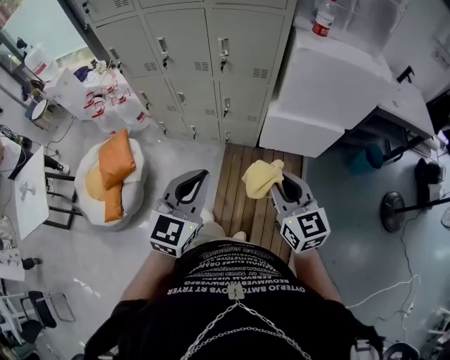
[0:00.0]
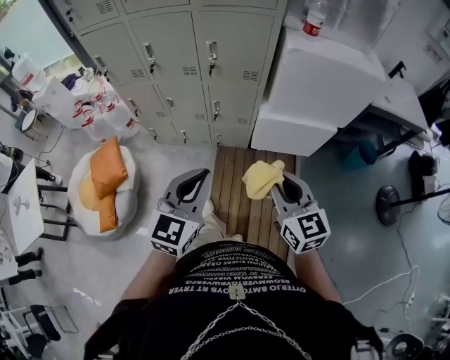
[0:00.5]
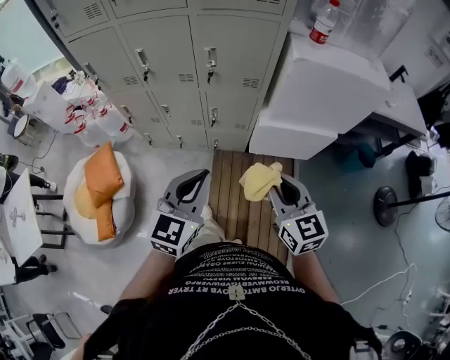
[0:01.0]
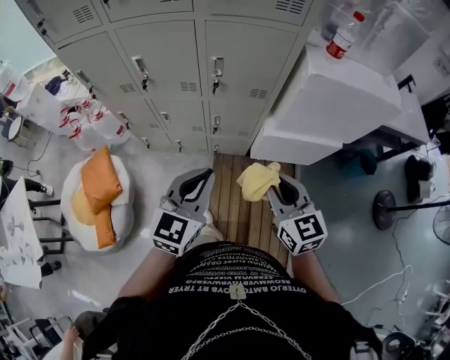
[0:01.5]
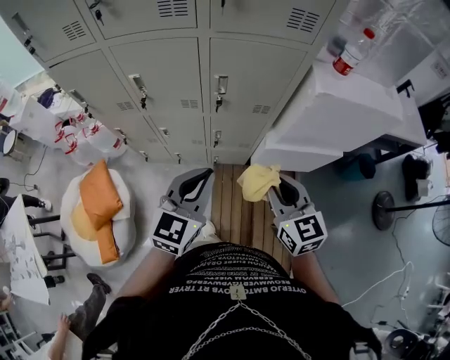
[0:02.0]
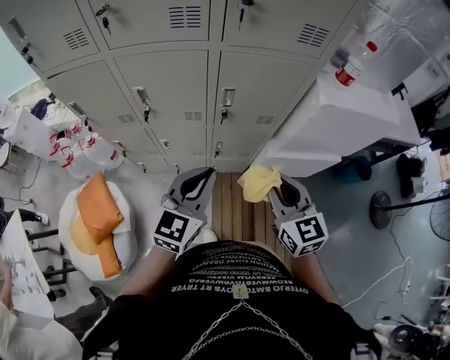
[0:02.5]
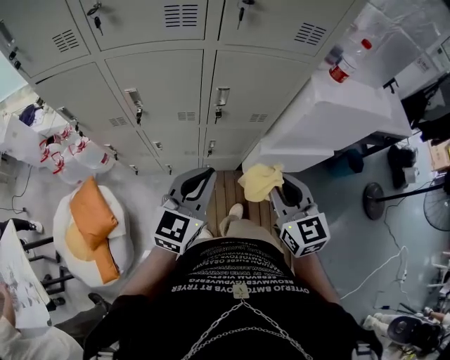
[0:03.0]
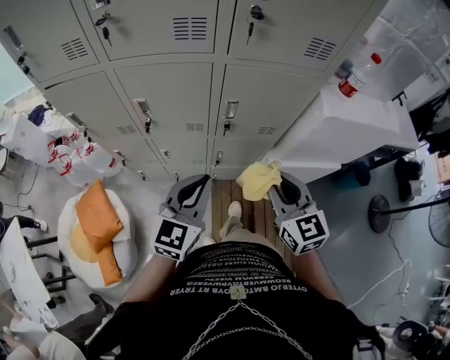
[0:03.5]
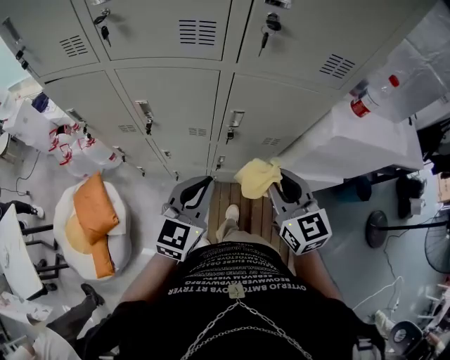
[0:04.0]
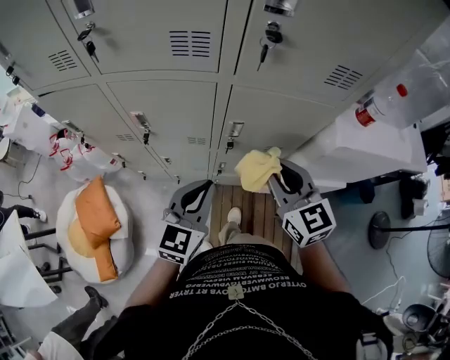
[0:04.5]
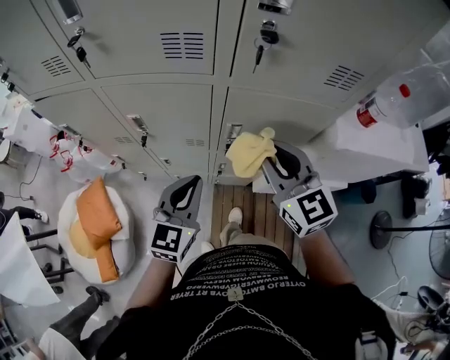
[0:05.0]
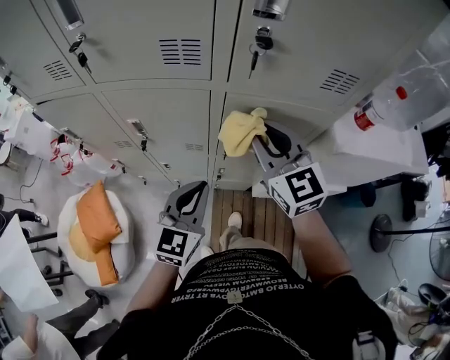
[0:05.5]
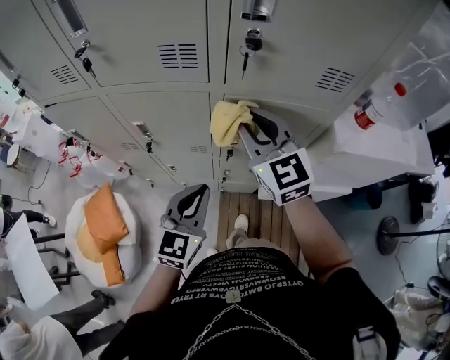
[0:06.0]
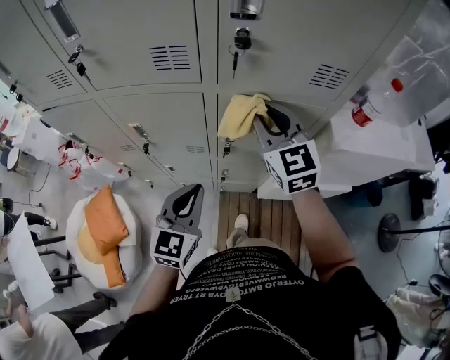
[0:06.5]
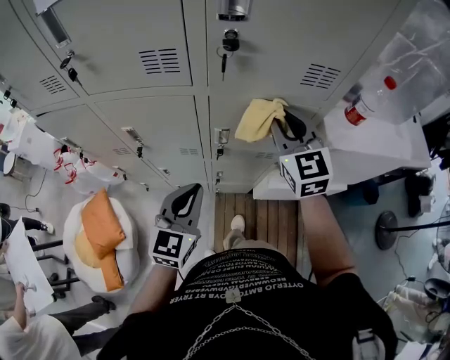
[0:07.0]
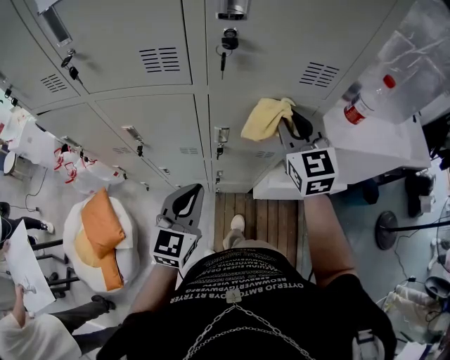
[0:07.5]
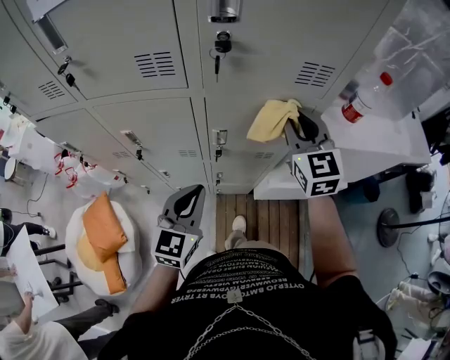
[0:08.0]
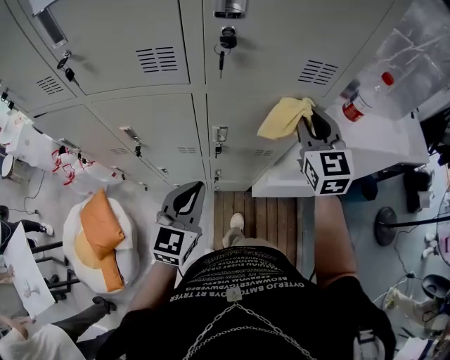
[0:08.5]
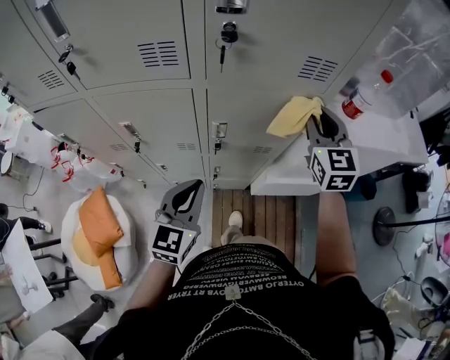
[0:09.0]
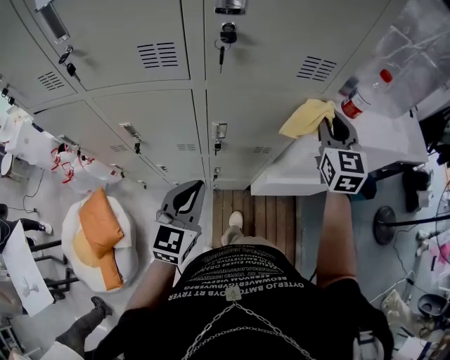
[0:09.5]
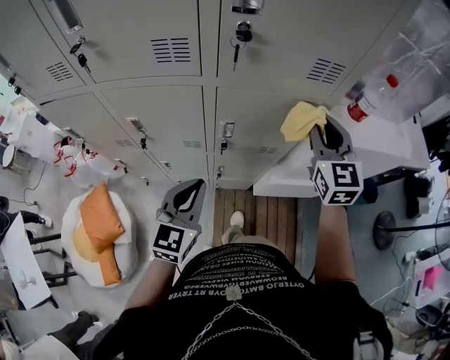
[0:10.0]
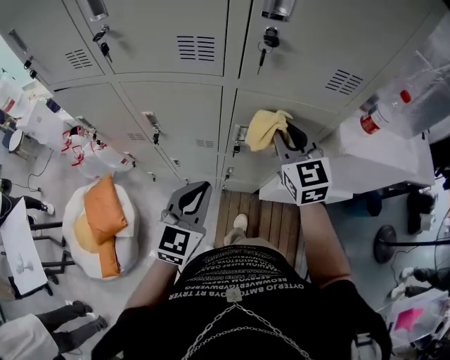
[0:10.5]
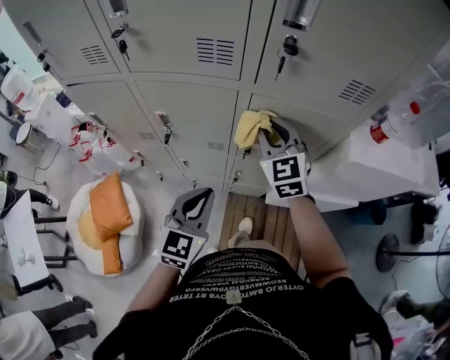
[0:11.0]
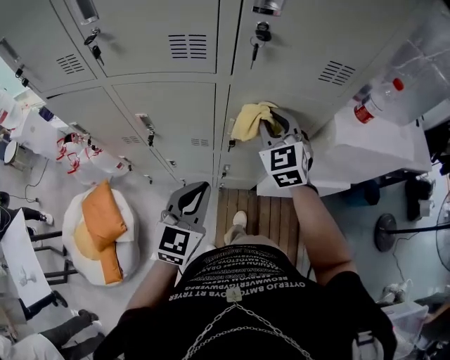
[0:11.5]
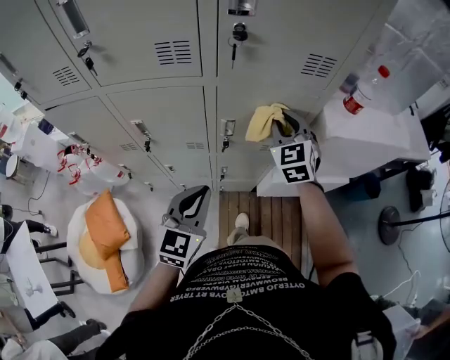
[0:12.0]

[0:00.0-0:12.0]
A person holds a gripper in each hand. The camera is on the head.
0:00.0 to 0:02.0: The two grippers go roughly 25 cm forward.
0:02.0 to 0:04.0: The two grippers go about 15 cm forward and to the left.
0:04.0 to 0:06.0: The right gripper shifts about 20 cm forward and upward.
0:06.0 to 0:08.0: The right gripper shifts roughly 15 cm to the right.
0:10.0 to 0:12.0: The right gripper travels downward and to the left by some 10 cm.

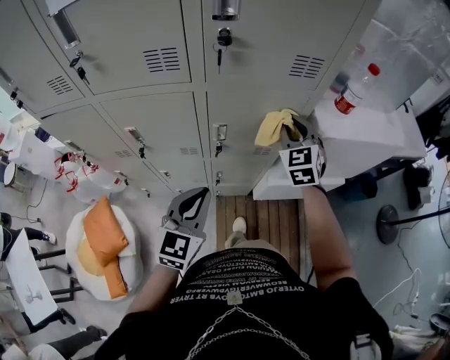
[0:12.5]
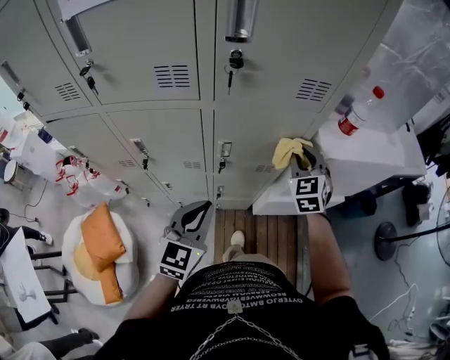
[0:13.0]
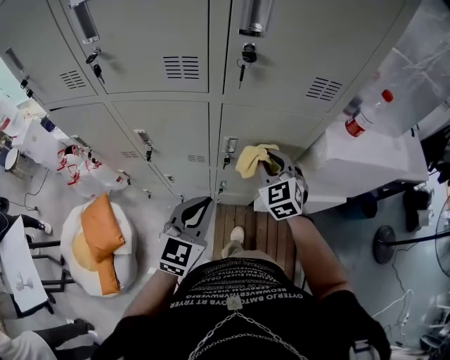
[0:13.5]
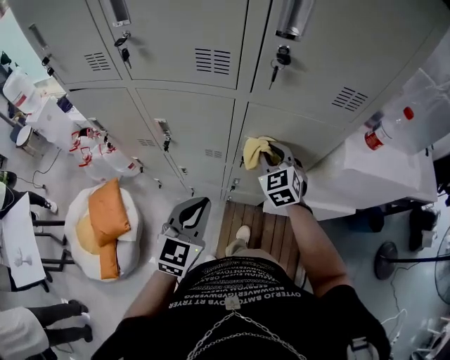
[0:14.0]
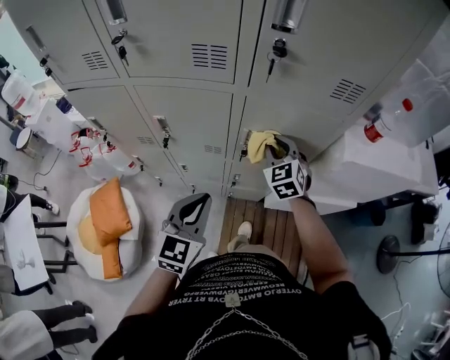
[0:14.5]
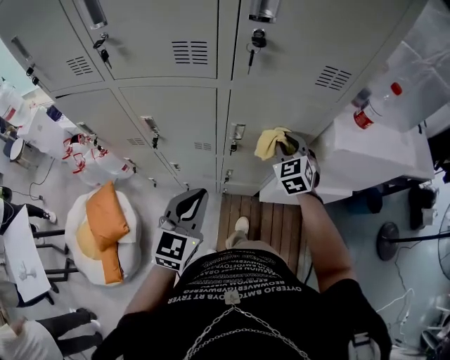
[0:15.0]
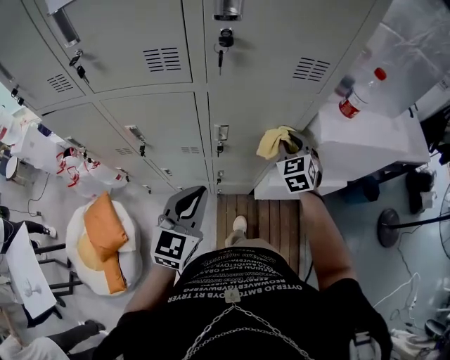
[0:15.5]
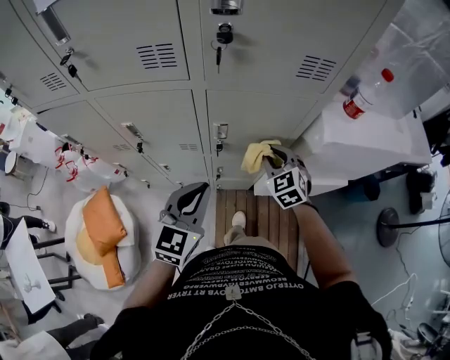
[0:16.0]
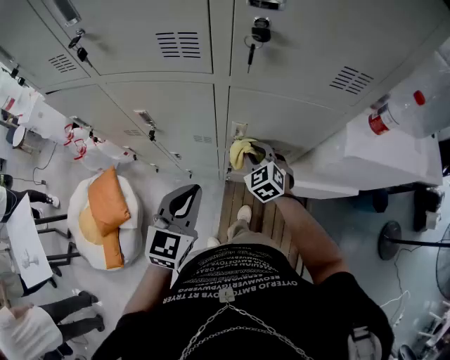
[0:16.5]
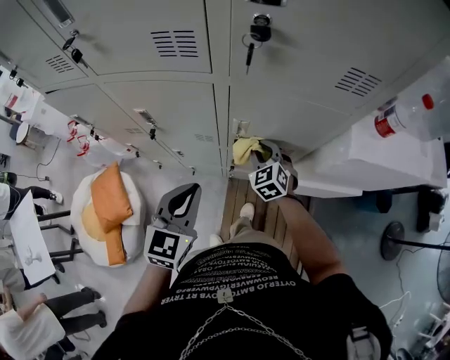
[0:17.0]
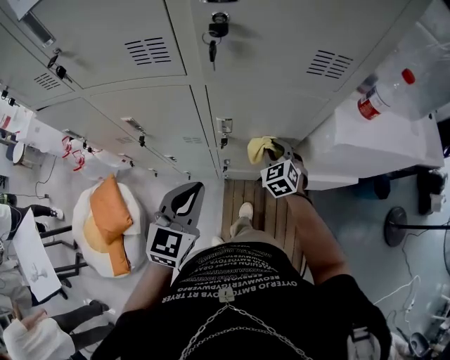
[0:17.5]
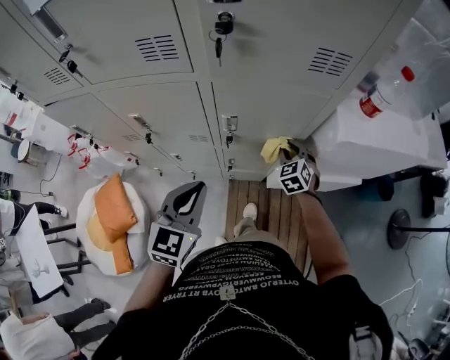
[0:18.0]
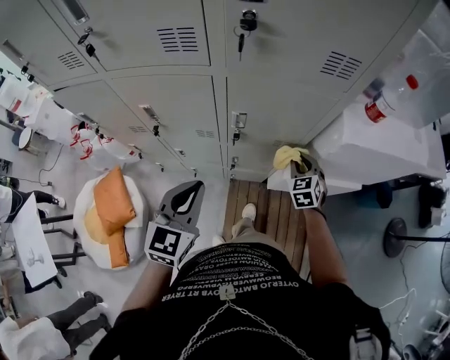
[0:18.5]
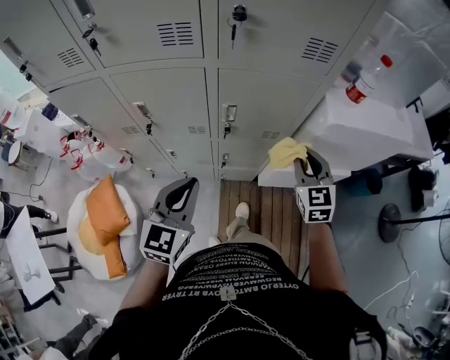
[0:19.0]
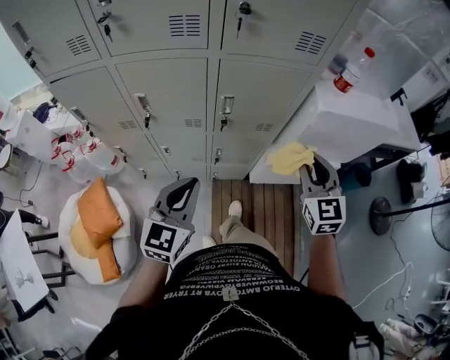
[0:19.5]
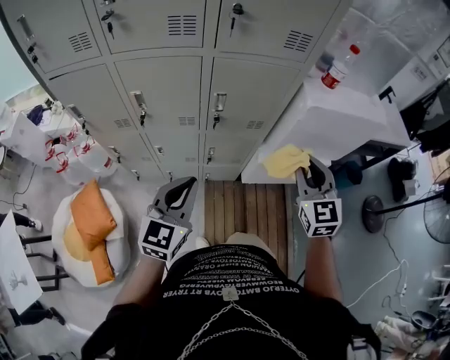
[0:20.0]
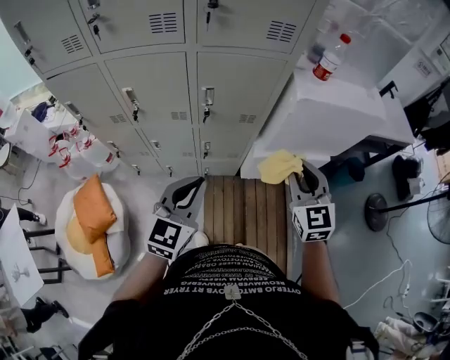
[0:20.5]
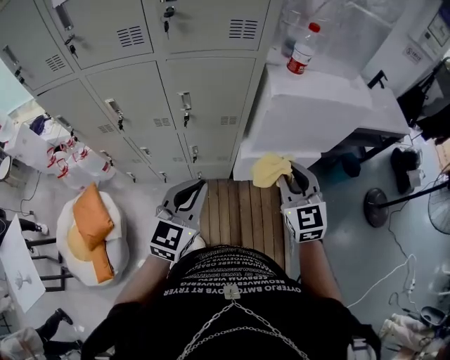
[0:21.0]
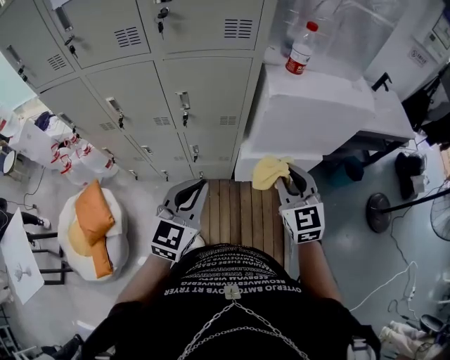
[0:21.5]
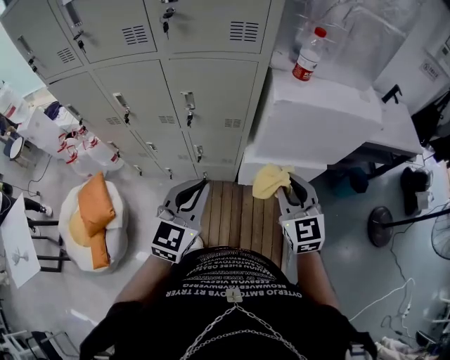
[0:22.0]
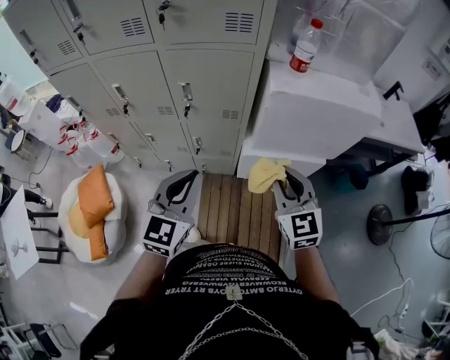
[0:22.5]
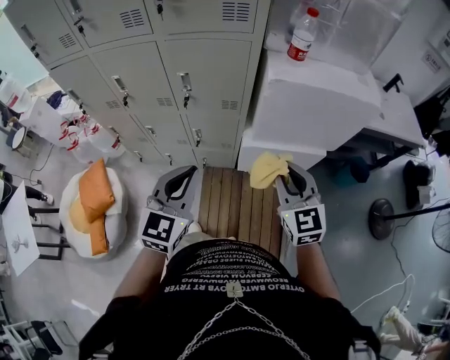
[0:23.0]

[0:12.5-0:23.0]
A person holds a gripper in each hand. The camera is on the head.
0:12.5 to 0:14.5: The right gripper goes approximately 15 cm to the left and downward; the left gripper goes roughly 5 cm to the left.
0:14.5 to 0:16.5: The right gripper is displaced downward by roughly 10 cm, and travels to the right and back again, approximately 15 cm each way.
0:16.5 to 0:19.0: The right gripper goes approximately 25 cm to the right, upward and backward, and turns by about 30 degrees. Meanwhile the left gripper moves backward, about 5 cm.
0:19.0 to 0:21.0: The right gripper shifts some 20 cm backward and to the right. Meanwhile the left gripper shifts about 20 cm to the right and backward.
0:21.0 to 0:23.0: The right gripper changes place by roughly 5 cm. Meanwhile the left gripper ends up roughly 5 cm from where it was.

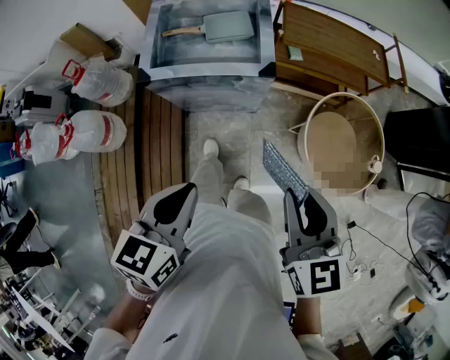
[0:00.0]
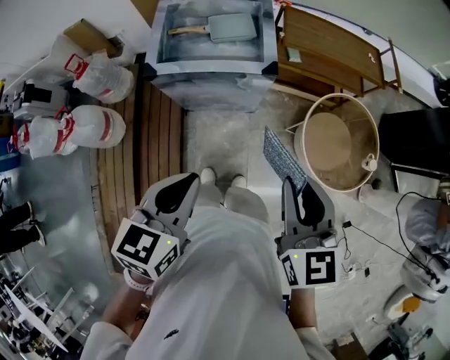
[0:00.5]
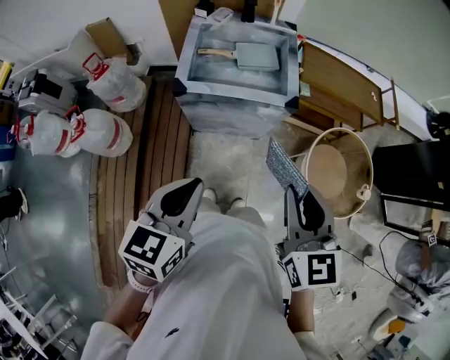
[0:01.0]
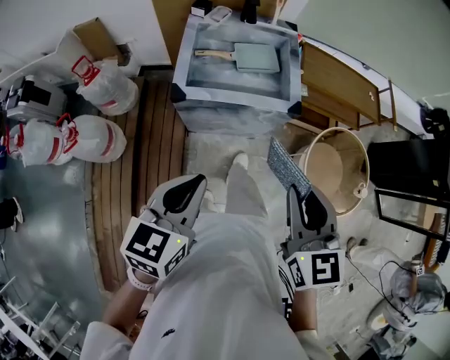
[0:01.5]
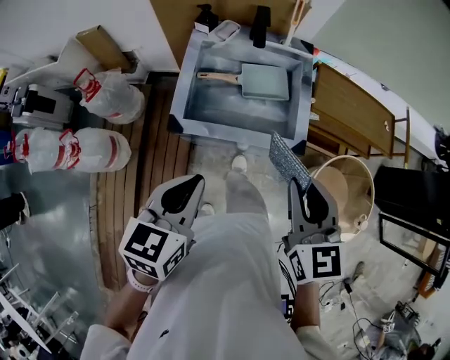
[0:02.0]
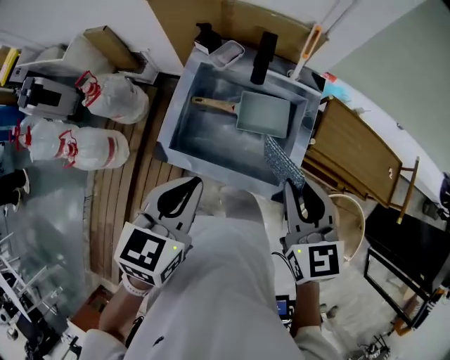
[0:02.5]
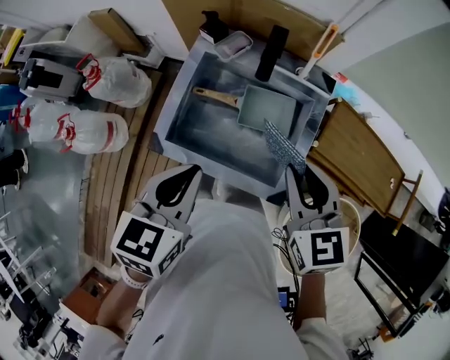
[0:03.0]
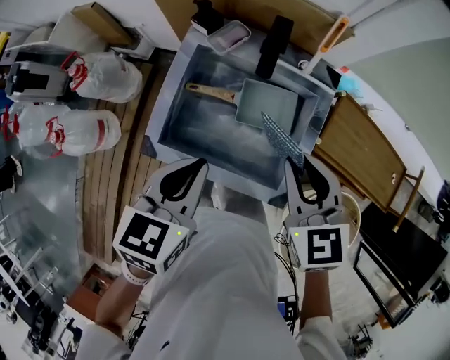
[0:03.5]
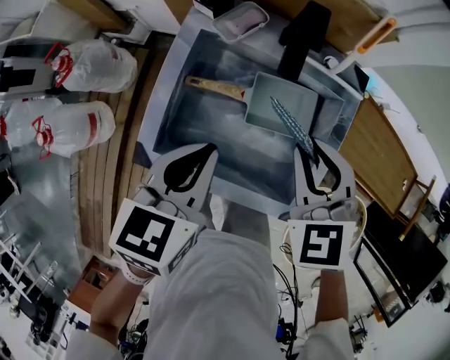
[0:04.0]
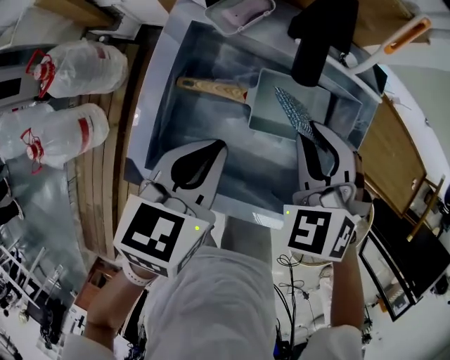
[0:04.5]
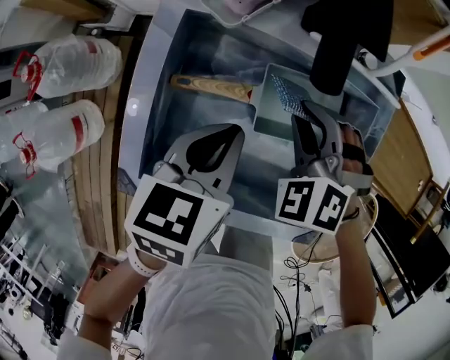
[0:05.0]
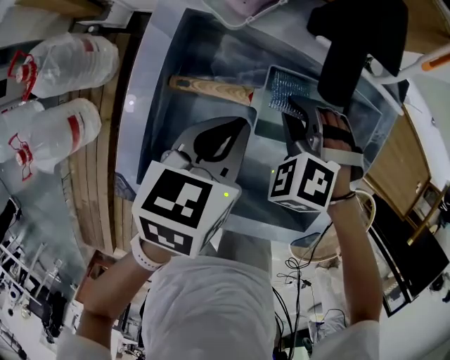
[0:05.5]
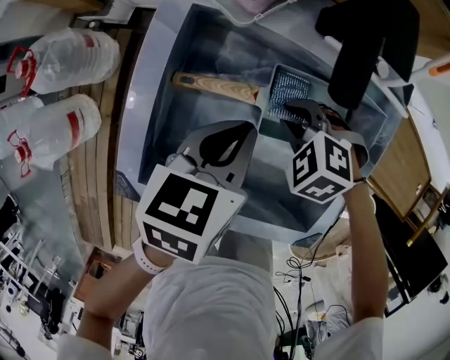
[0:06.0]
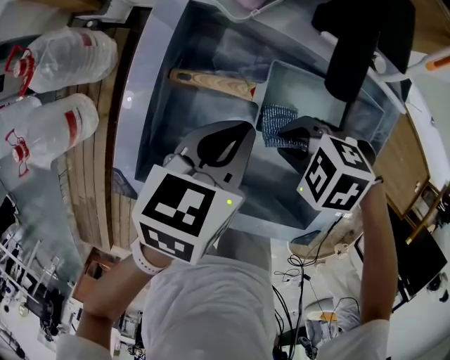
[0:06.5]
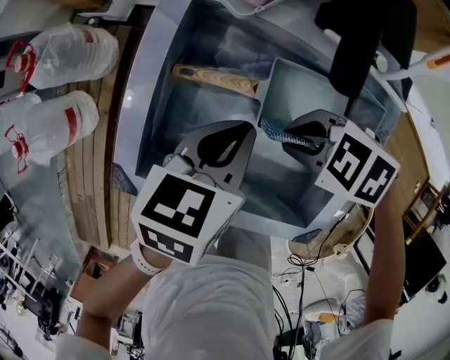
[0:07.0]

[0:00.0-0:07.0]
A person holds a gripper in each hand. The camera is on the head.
0:00.0 to 0:02.0: Both grippers travel together forward and to the left, approximately 25 cm.
0:02.0 to 0:03.5: The grippers both shift forward by some 25 cm. The right gripper swivels roughly 20 degrees.
0:03.5 to 0:05.0: The two grippers go approximately 25 cm downward and forward. The right gripper twists some 50 degrees counterclockwise, seen from behind.
0:05.0 to 0:07.0: The right gripper travels downward and back again, some 10 cm each way, and swivels some 60 degrees.
